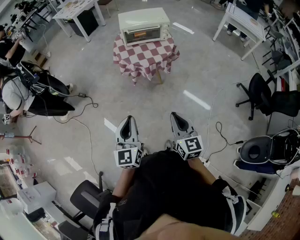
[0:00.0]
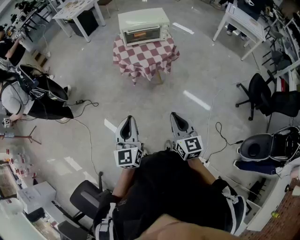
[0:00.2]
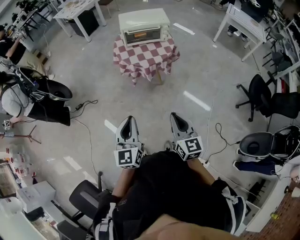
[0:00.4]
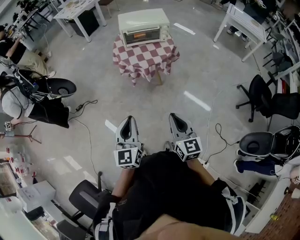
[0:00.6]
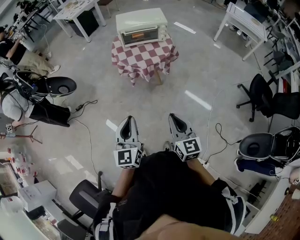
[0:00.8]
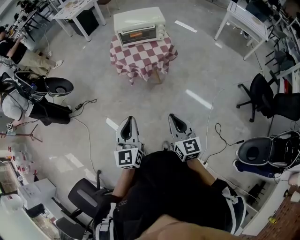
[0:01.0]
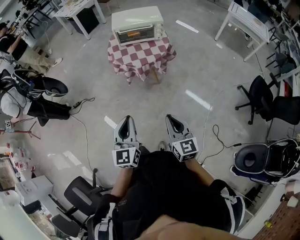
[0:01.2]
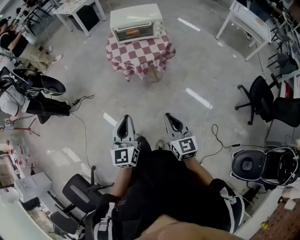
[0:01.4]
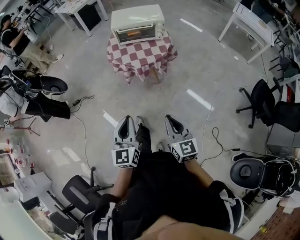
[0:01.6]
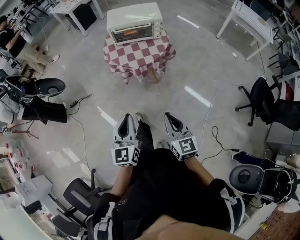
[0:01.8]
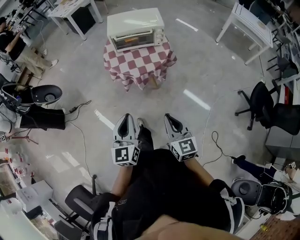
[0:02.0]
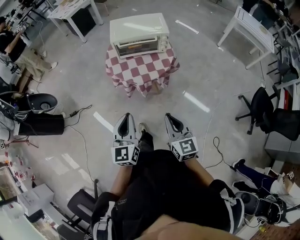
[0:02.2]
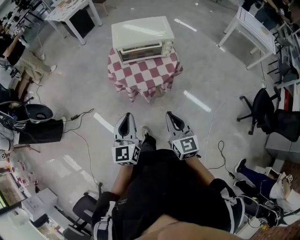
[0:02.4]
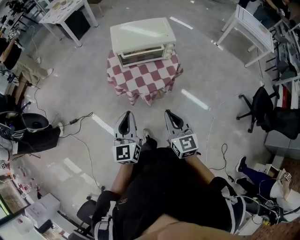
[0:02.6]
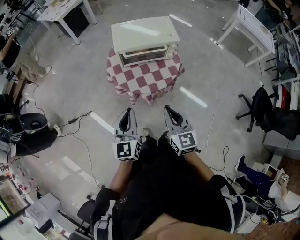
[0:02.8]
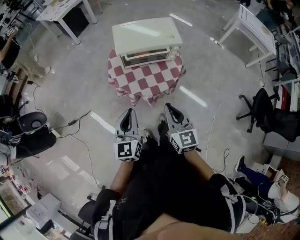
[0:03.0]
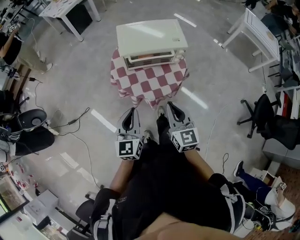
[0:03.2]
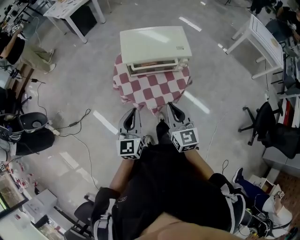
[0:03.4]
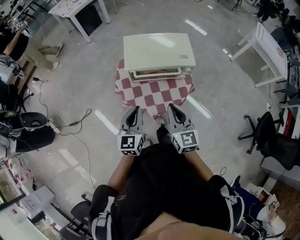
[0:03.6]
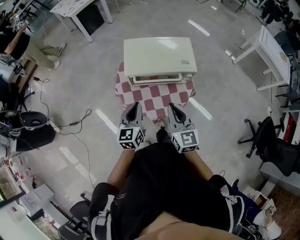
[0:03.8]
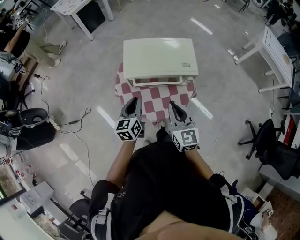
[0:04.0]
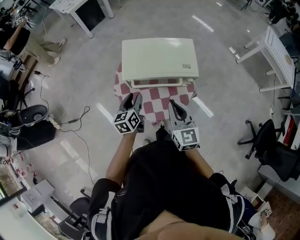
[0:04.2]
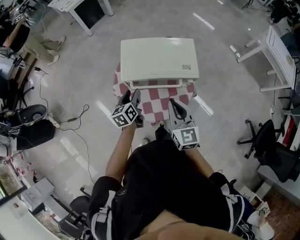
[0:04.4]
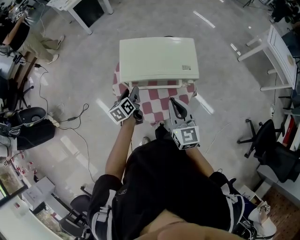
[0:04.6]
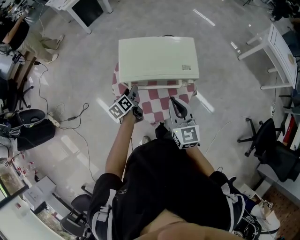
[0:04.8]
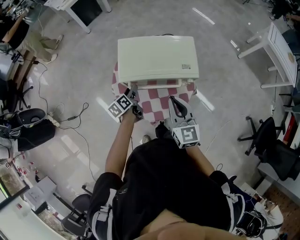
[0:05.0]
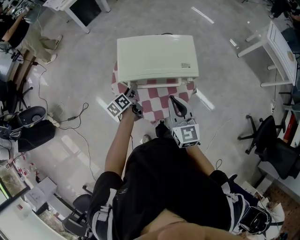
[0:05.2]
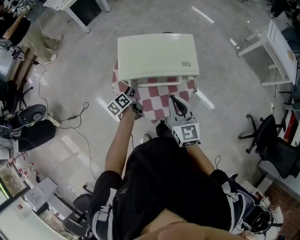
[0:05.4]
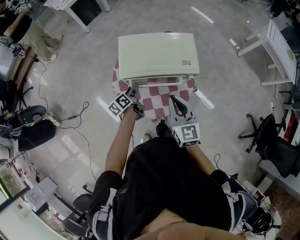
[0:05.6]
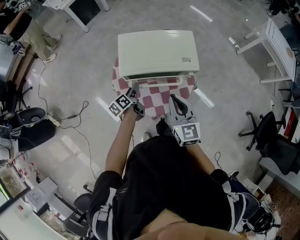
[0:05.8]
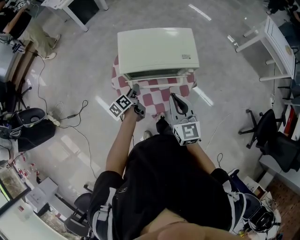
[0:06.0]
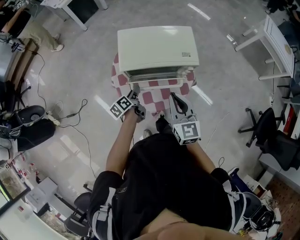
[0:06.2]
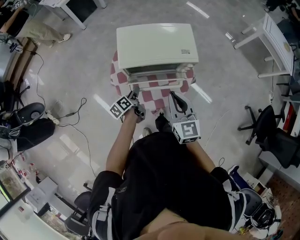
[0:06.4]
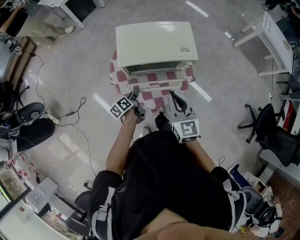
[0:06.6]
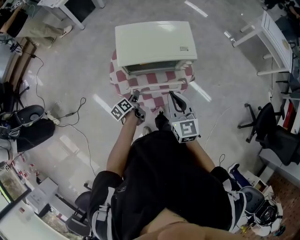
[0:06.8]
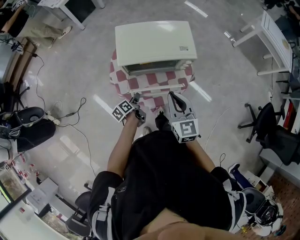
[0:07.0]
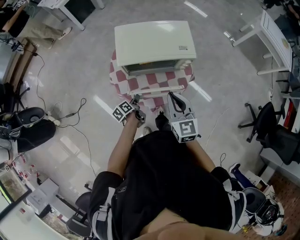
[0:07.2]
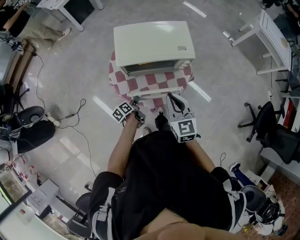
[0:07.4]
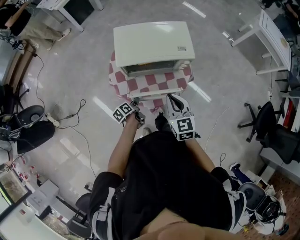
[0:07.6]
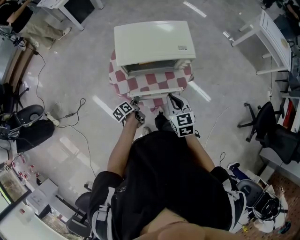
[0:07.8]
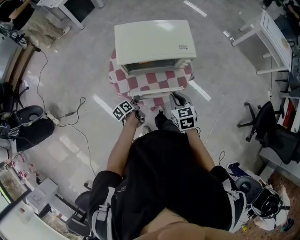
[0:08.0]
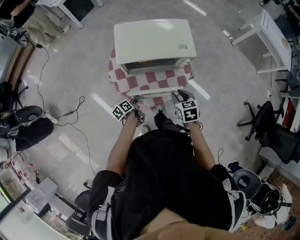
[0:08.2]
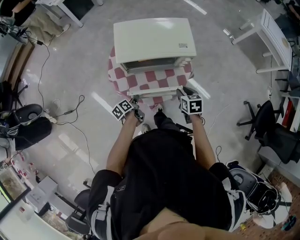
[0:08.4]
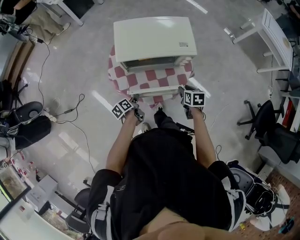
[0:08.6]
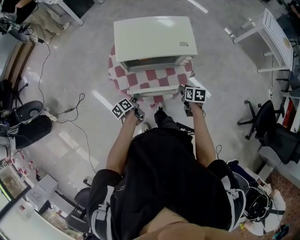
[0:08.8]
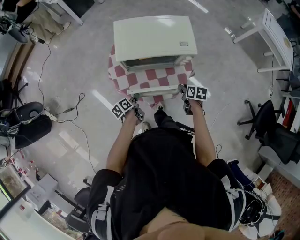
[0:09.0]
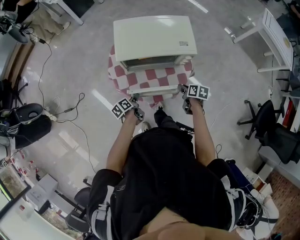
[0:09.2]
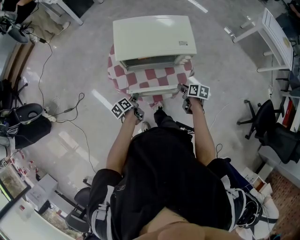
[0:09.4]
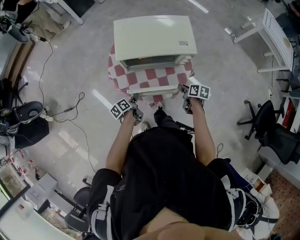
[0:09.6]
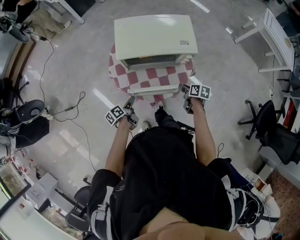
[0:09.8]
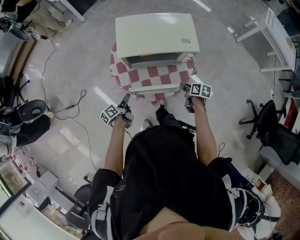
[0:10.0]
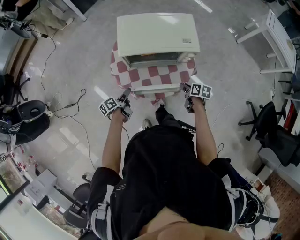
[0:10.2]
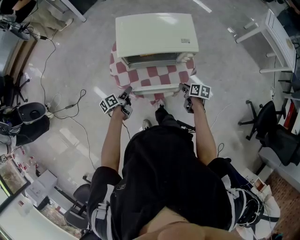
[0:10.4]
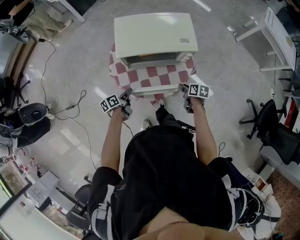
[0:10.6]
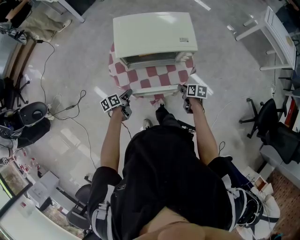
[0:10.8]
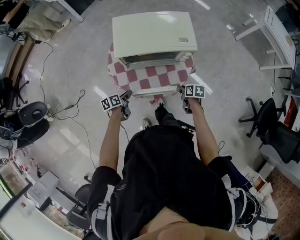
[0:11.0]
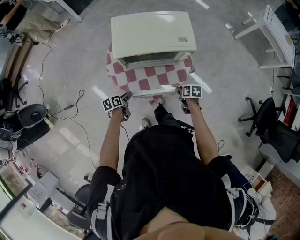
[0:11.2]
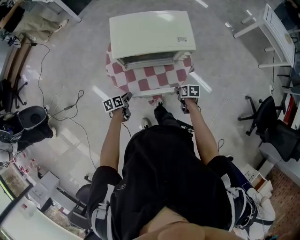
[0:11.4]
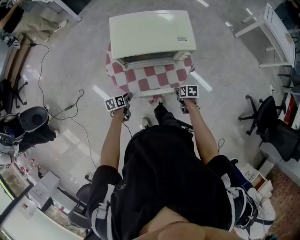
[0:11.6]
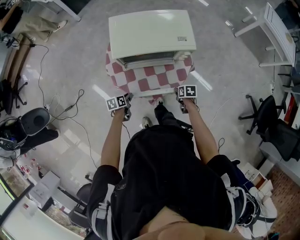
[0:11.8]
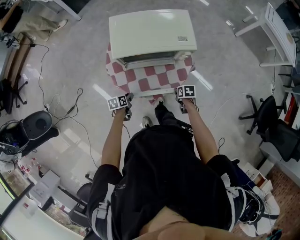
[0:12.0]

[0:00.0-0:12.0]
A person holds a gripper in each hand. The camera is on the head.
0.0 to 1.6 s: The grippers both shift to the right by roughly 10 cm.
1.6 to 3.0 s: Both grippers travel together forward, some 35 cm.
3.0 to 4.4 s: The left gripper travels forward and downward by some 35 cm, swivels about 40 degrees, and opens. Meanwhile the right gripper is displaced forward by roughly 25 cm.
4.4 to 6.0 s: The left gripper heads downward, covering about 5 cm, and rotates approximately 30 degrees.
6.0 to 7.6 s: The left gripper moves backward and downward, about 15 cm, while the right gripper shifts roughly 5 cm downward.
7.6 to 9.0 s: The right gripper travels downward and to the right by approximately 25 cm, swivels some 50 degrees, and opens up.
10.4 to 12.0 s: The two grippers go some 10 cm downward. The right gripper turns by some 20 degrees; the left gripper turns by approximately 40 degrees.

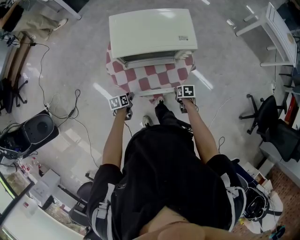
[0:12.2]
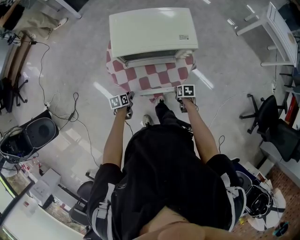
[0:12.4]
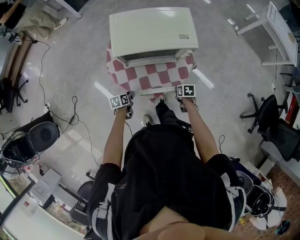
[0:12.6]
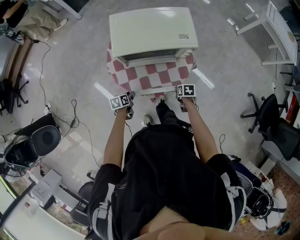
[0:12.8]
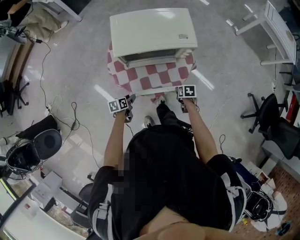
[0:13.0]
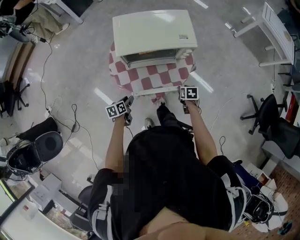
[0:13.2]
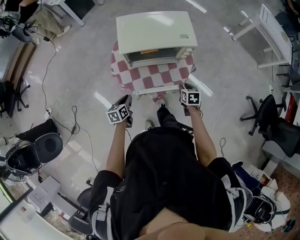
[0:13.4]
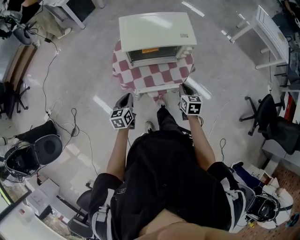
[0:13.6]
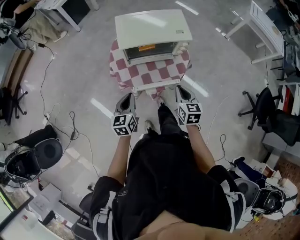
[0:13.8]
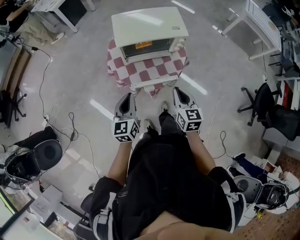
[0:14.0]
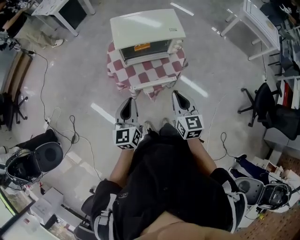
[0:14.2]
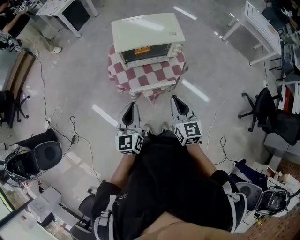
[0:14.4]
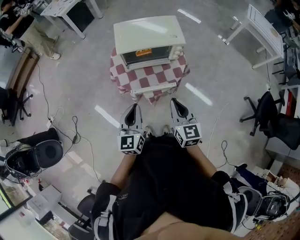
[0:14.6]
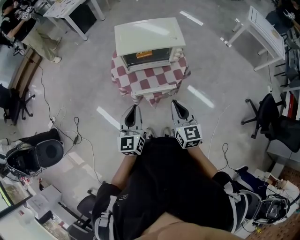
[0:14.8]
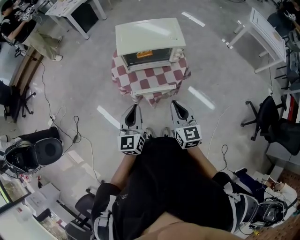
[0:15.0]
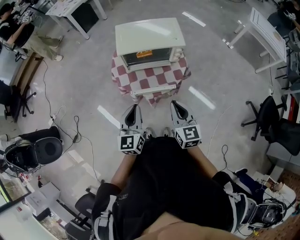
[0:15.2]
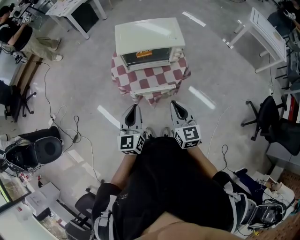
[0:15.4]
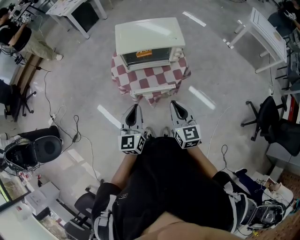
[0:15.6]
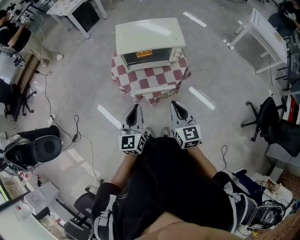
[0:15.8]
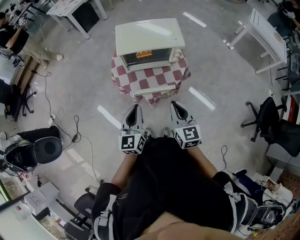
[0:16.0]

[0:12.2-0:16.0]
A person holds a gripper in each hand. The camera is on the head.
12.2 to 13.4 s: The two grippers go roughly 10 cm upward. The right gripper rotates some 20 degrees. Meanwhile the left gripper changes its angle by some 20 degrees.
13.4 to 14.8 s: The right gripper travels upward and backward by approximately 30 cm, tilts its fingers some 40 degrees upward, and closes; the left gripper heads upward, backward and to the right, covering roughly 30 cm, and angles its fingers upward, by roughly 30 degrees.
14.8 to 16.0 s: The grippers make only small movements.

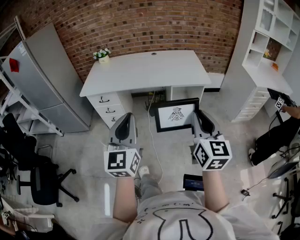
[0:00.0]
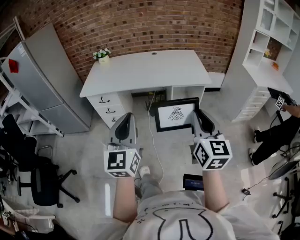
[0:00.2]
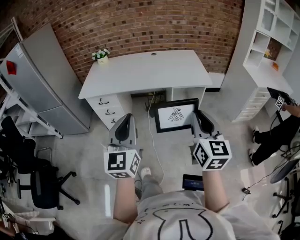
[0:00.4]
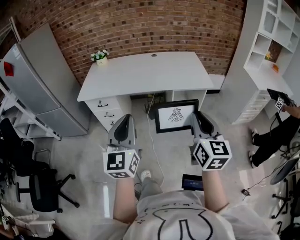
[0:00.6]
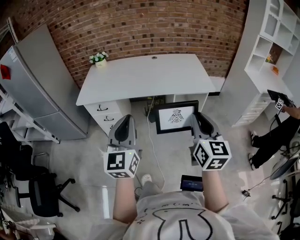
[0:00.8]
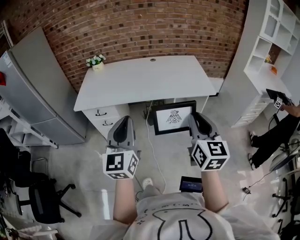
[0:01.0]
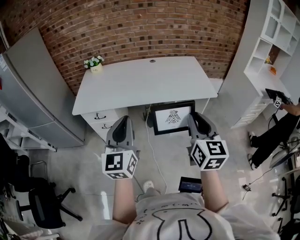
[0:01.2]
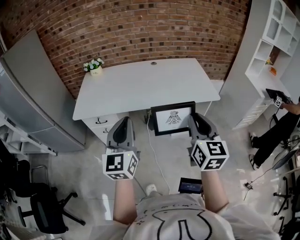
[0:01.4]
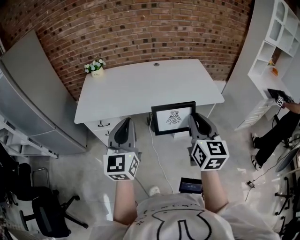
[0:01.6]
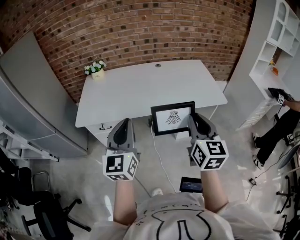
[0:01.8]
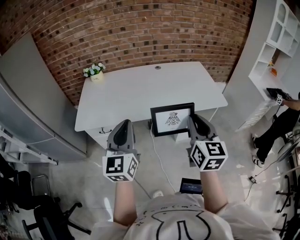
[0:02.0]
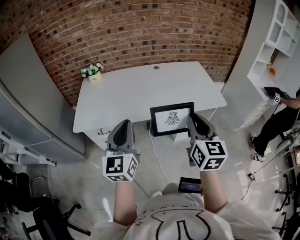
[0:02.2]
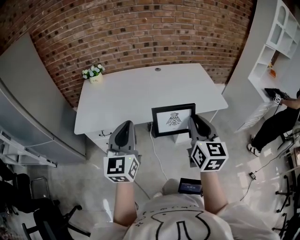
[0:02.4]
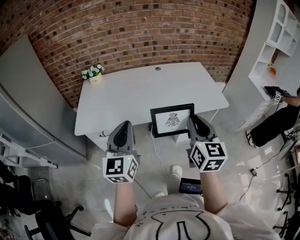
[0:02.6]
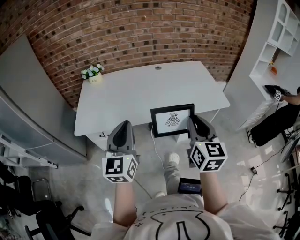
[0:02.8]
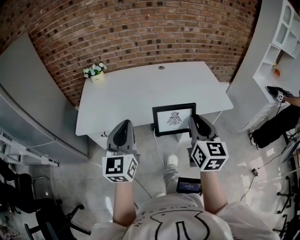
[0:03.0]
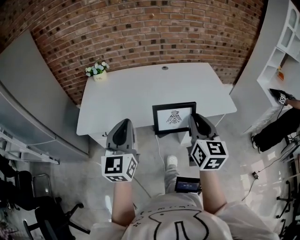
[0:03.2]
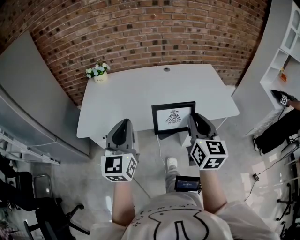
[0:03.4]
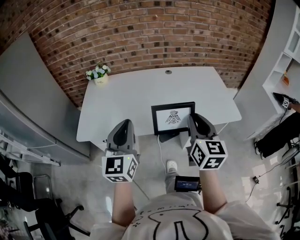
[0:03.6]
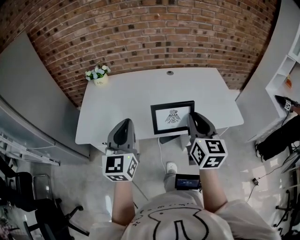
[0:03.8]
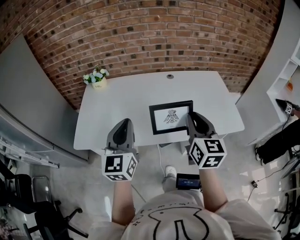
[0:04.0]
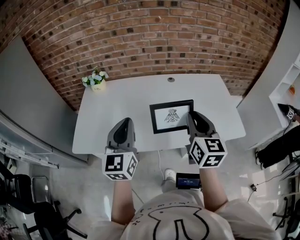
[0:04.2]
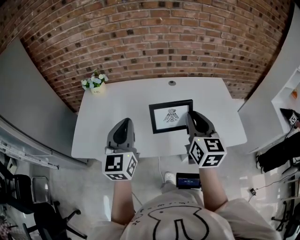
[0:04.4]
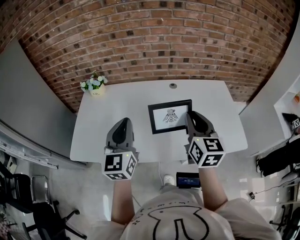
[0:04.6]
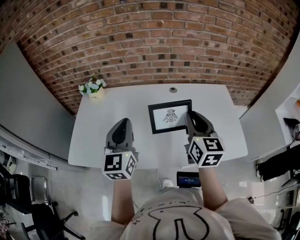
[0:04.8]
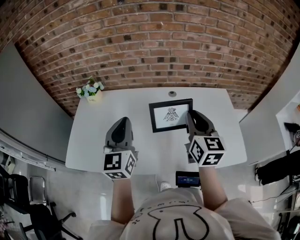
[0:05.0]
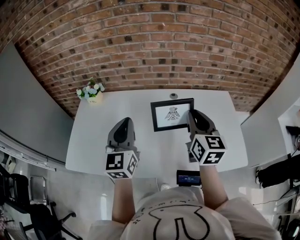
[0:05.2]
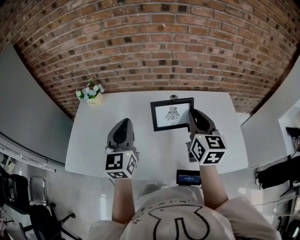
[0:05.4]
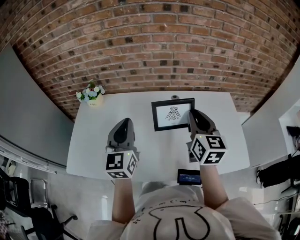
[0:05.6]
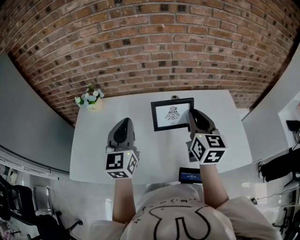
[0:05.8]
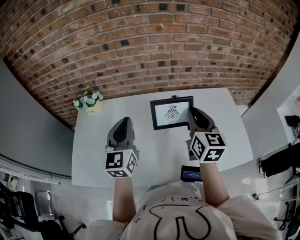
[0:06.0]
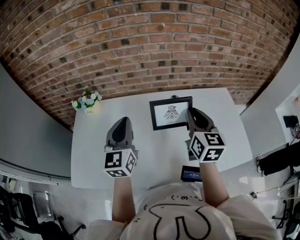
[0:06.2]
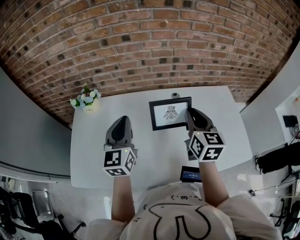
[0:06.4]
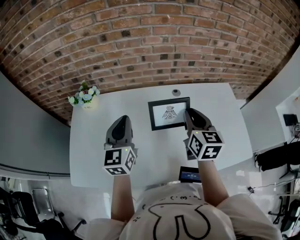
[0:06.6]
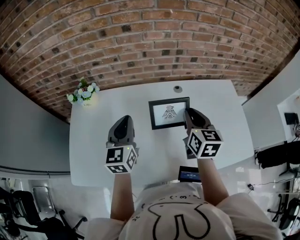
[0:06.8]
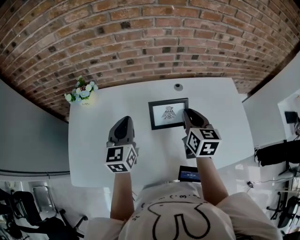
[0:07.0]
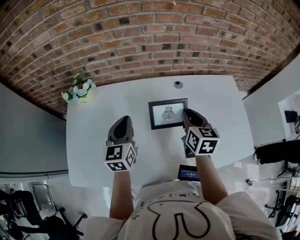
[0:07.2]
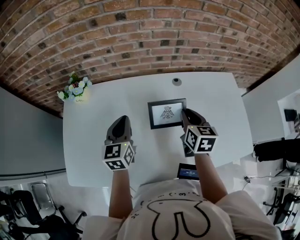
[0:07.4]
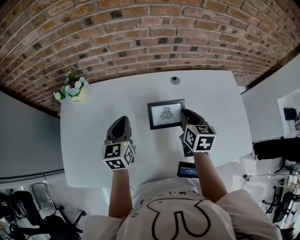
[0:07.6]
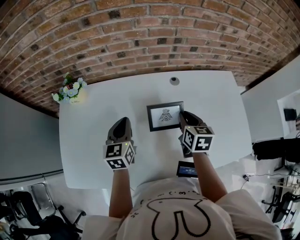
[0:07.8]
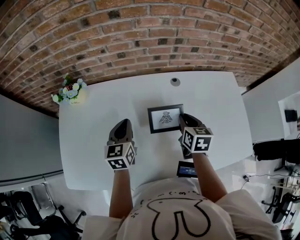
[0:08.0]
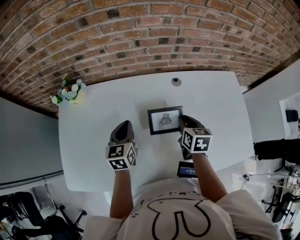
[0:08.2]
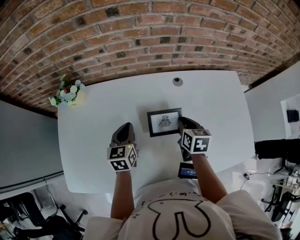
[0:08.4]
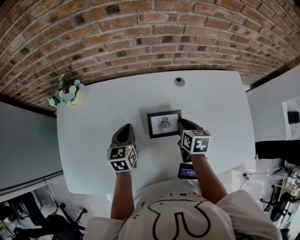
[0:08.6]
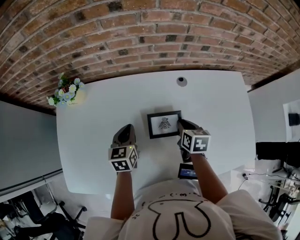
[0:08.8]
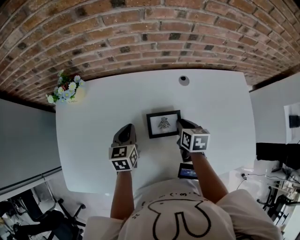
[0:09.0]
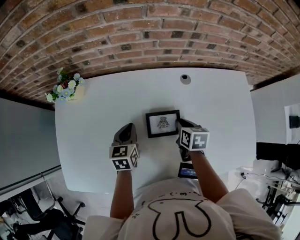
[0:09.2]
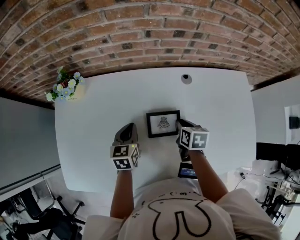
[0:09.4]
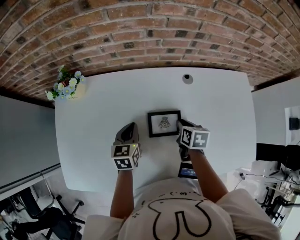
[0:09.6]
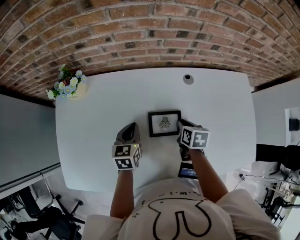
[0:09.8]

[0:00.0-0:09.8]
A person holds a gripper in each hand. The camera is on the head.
0.0 to 1.4 s: The two grippers go about 25 cm forward and to the left.
1.4 to 2.8 s: Both grippers move forward and to the left, some 15 cm.
2.8 to 4.2 s: The two grippers go roughly 20 cm forward.
4.2 to 5.6 s: Both grippers travel together forward, about 20 cm.
5.6 to 7.0 s: The left gripper heads forward, downward and to the left, covering roughly 15 cm. Meanwhile the right gripper travels downward, to the left and forward by about 15 cm.
7.0 to 8.4 s: Both grippers travel together downward, about 15 cm. The right gripper changes its angle by approximately 20 degrees.
8.4 to 9.8 s: Both grippers move downward, about 5 cm.
